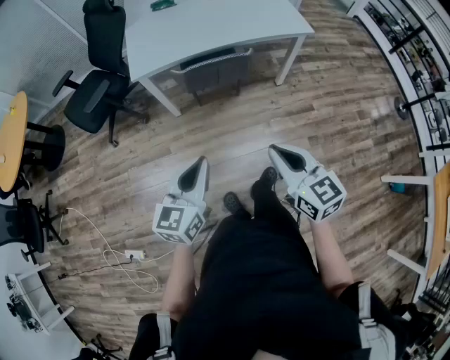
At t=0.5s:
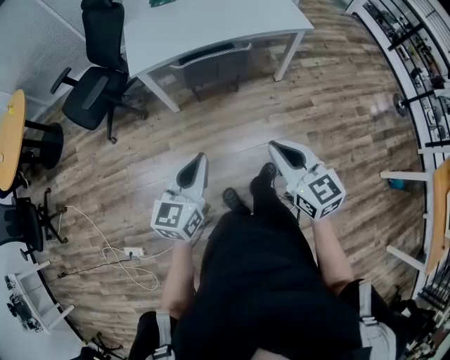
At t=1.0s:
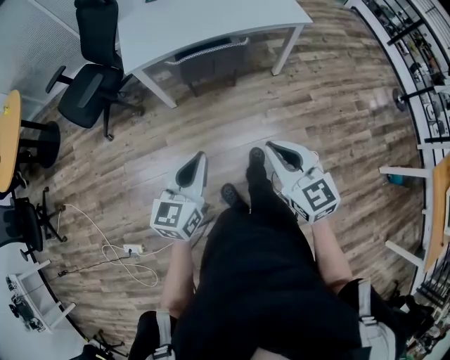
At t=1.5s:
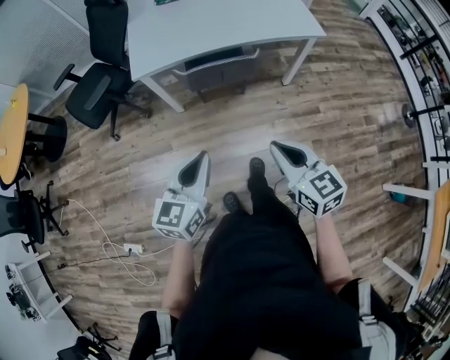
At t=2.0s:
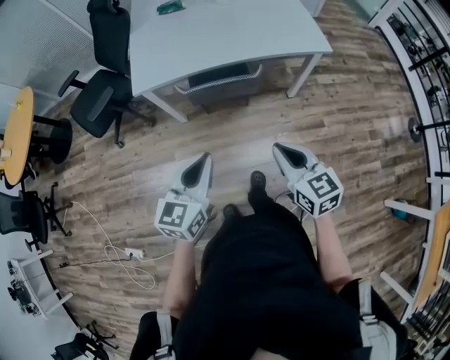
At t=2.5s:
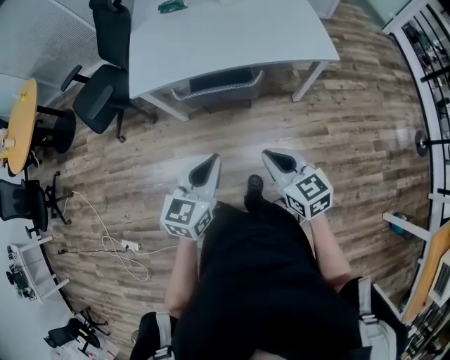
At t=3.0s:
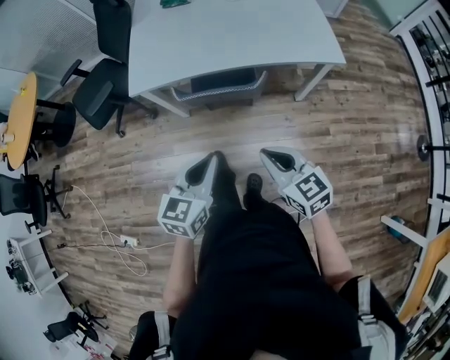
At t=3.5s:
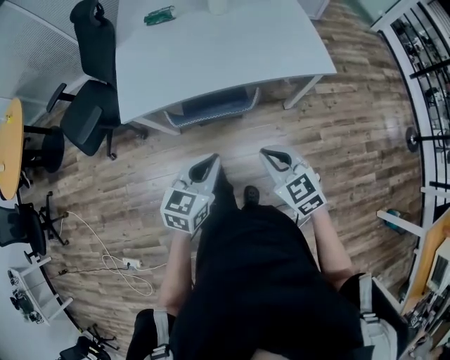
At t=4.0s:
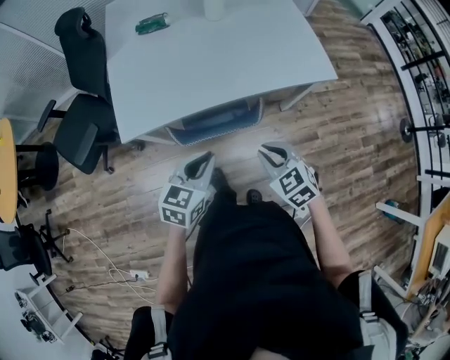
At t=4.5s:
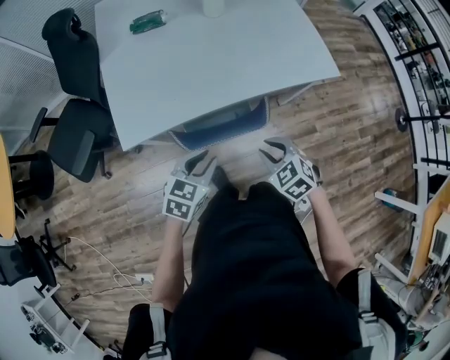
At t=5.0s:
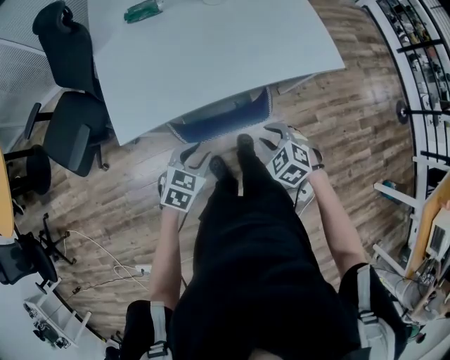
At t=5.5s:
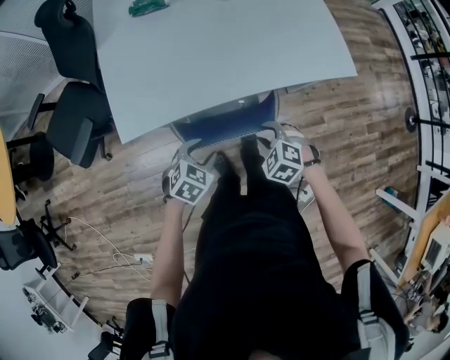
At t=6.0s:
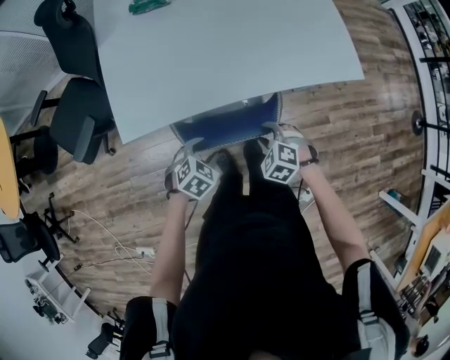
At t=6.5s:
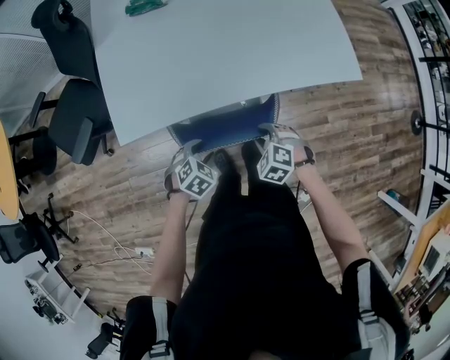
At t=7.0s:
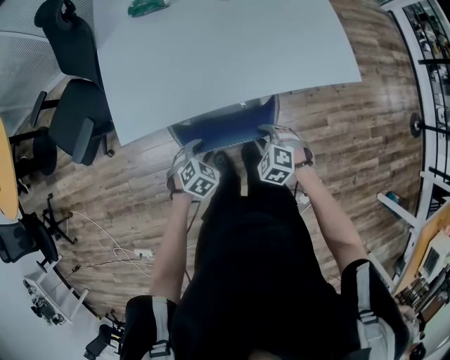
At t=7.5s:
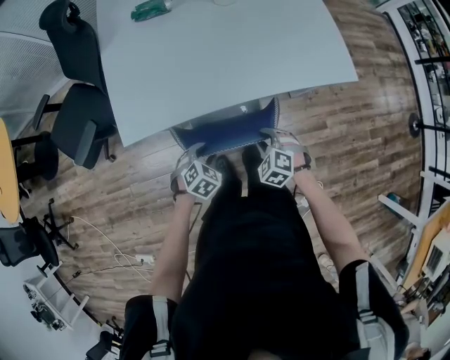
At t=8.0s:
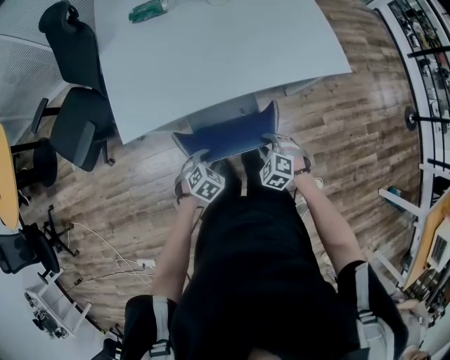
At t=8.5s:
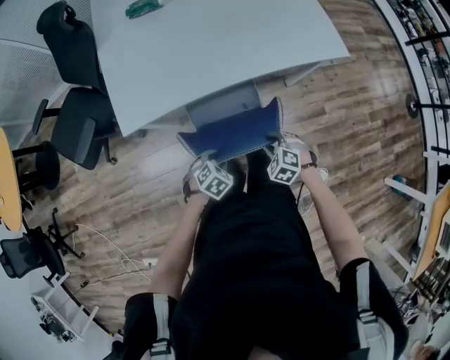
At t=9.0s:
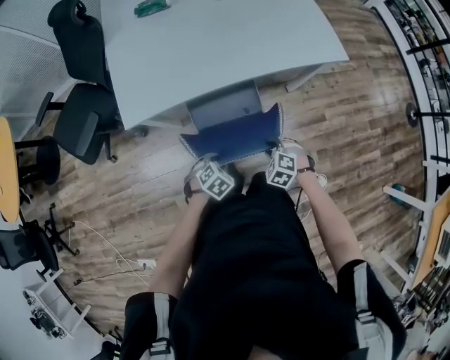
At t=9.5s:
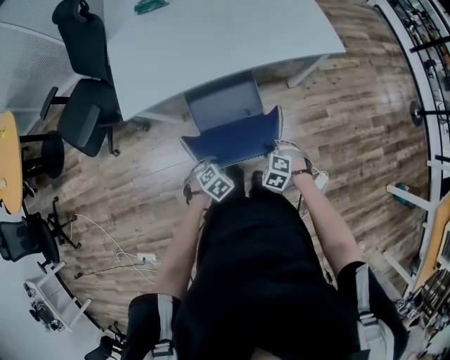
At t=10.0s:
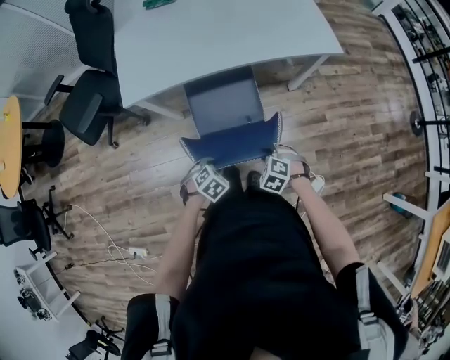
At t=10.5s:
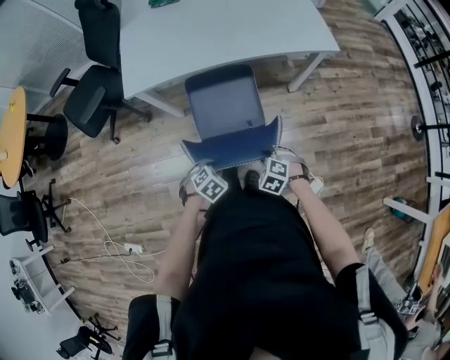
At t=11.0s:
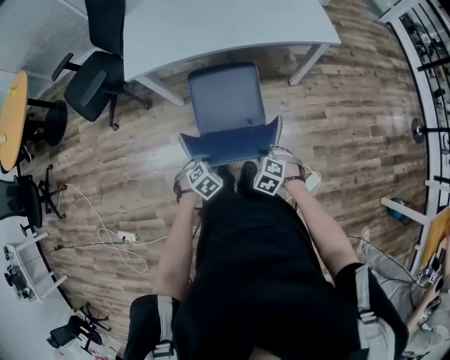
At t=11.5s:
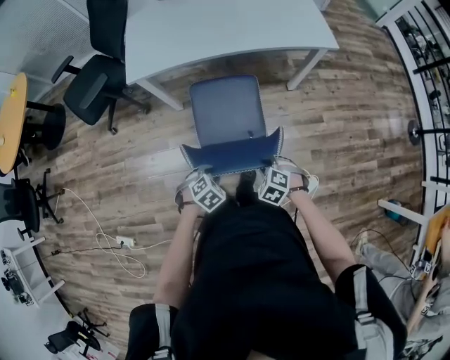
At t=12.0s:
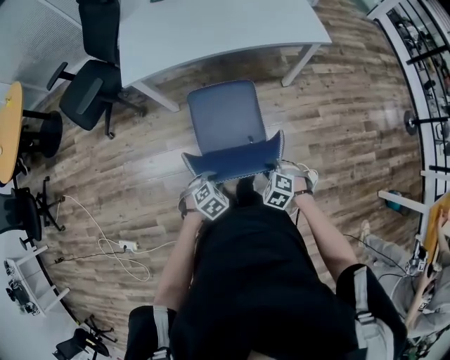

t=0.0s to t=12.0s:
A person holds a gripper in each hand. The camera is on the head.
t=0.0s to t=2.0s: The grippers both shift forward and to the right by approximately 15 cm.
t=2.0s to t=4.0s: The left gripper travels forward by roughly 25 cm, and changes its angle by roughly 20 degrees; the right gripper is displaced forward and downward by some 25 cm, and rotates roughly 30 degrees.
t=4.0s to t=6.0s: The right gripper travels downward and forward by some 15 cm, turns by some 30 degrees, and opens. Meanwhile the left gripper heads downward, covering roughly 15 cm, angles its fingers downward, by about 30 degrees, and opens.
t=6.0s to t=8.0s: Both grippers move backward, some 5 cm.
t=8.0s to t=10.0s: The right gripper ends up about 20 cm from where it was, while the left gripper moves some 20 cm.
t=10.0s to t=12.0s: Both grippers move backward, about 15 cm.

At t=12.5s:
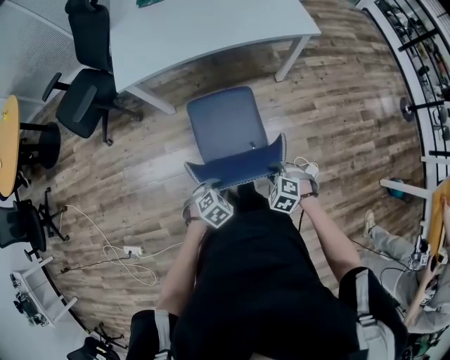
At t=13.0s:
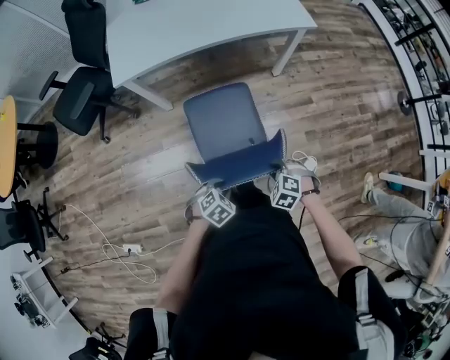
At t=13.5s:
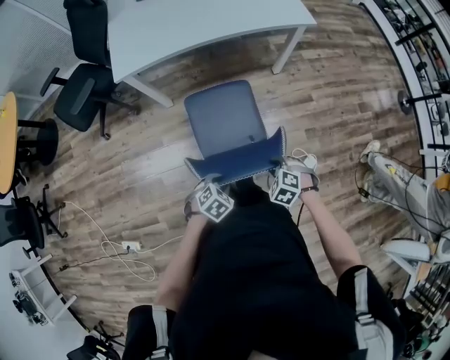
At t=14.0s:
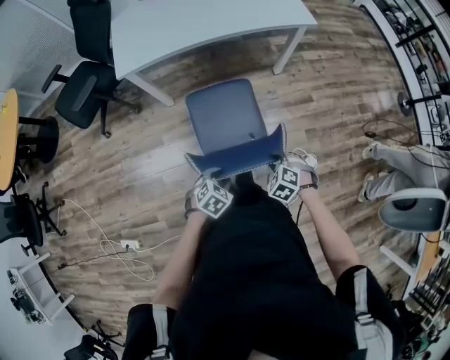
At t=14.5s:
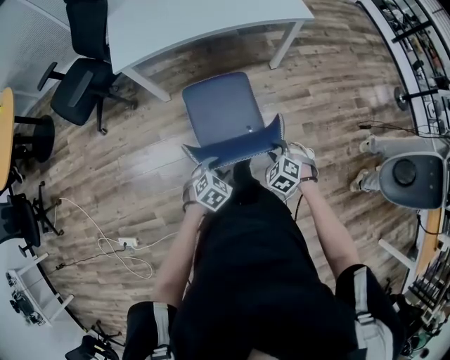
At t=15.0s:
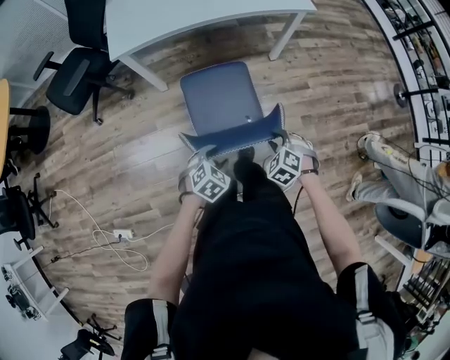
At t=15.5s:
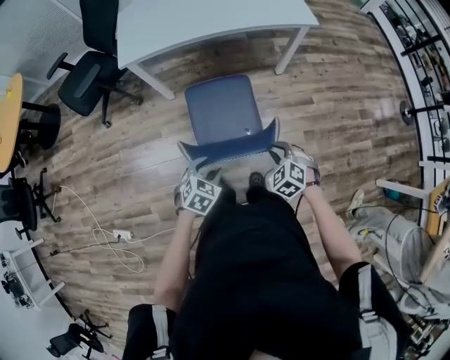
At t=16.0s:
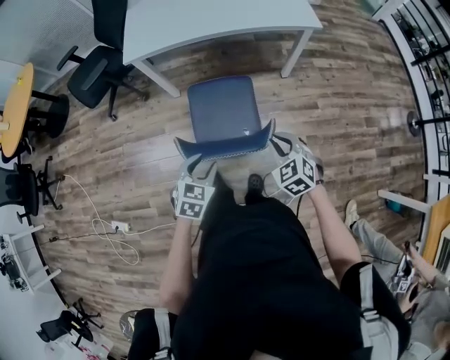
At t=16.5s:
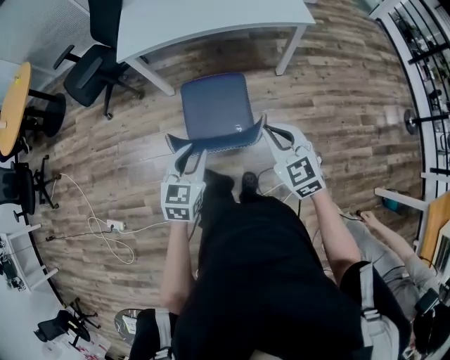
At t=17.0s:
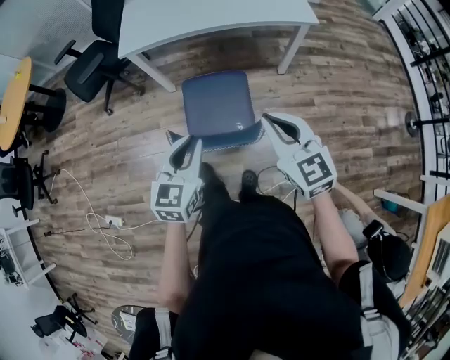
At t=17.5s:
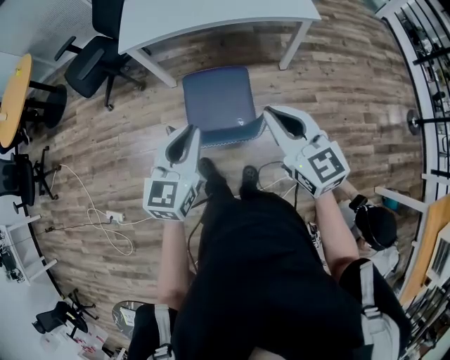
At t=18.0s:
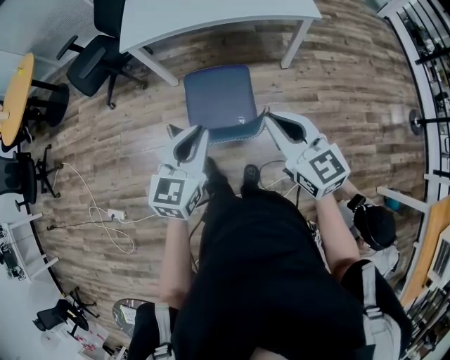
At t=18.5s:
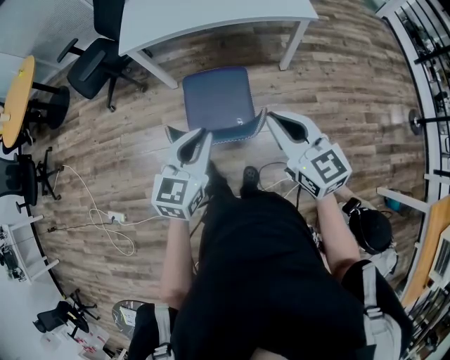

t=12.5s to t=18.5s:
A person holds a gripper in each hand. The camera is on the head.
t=12.5s to t=14.5s: The left gripper opens up.
t=14.5s to t=16.5s: Both grippers travel together upward, some 20 cm. The right gripper tips its fingers upward by approximately 40 degrees, and closes up; the left gripper swivels some 50 degrees.
t=16.5s to t=18.5s: Both grippers move upward, about 10 cm. The right gripper swivels approximately 20 degrees.

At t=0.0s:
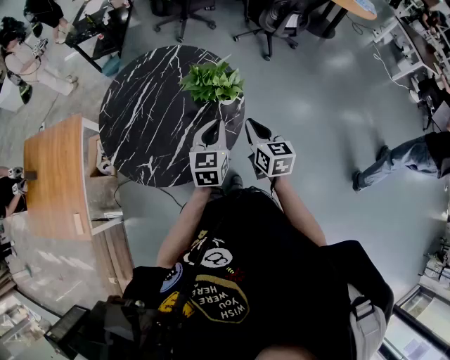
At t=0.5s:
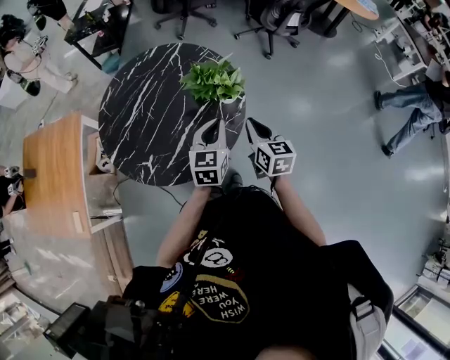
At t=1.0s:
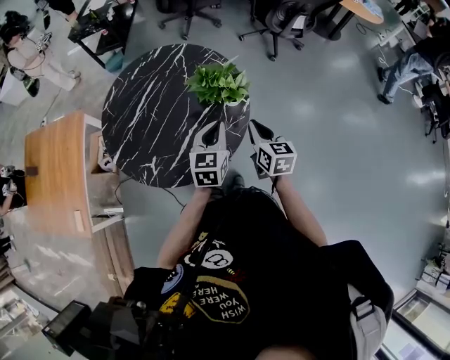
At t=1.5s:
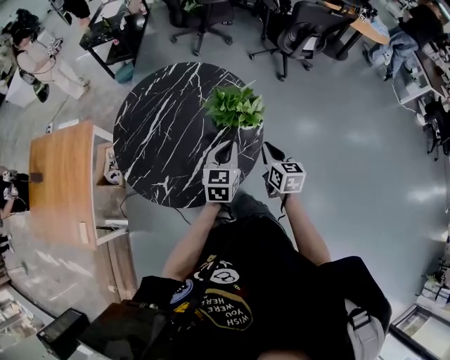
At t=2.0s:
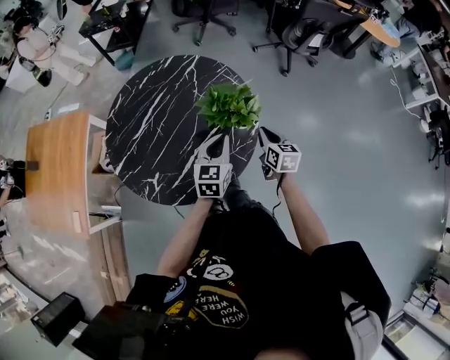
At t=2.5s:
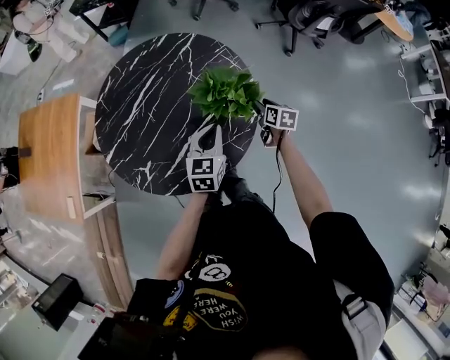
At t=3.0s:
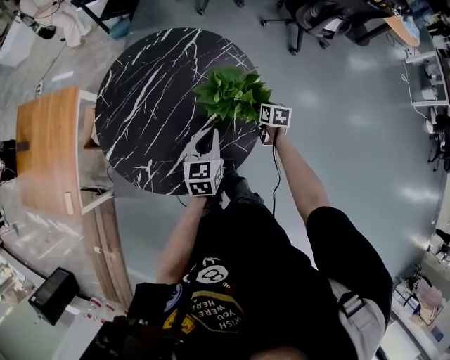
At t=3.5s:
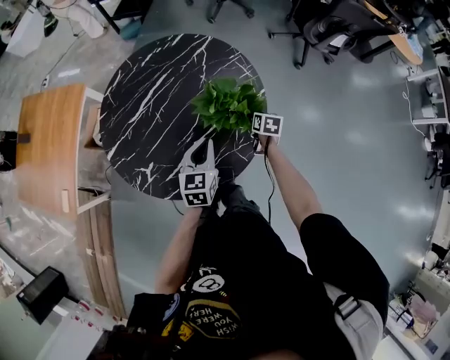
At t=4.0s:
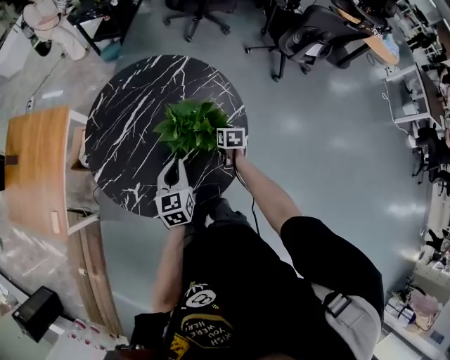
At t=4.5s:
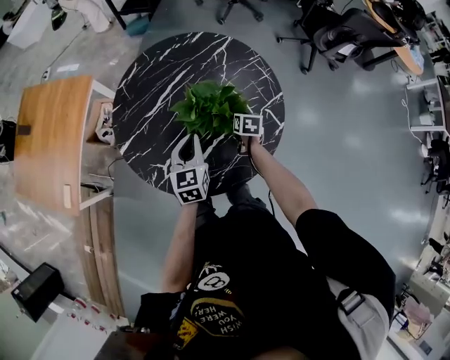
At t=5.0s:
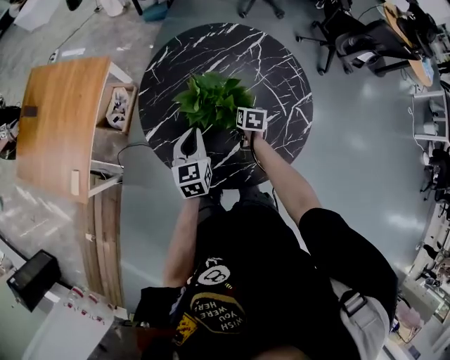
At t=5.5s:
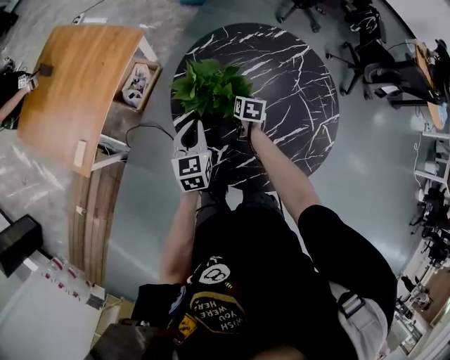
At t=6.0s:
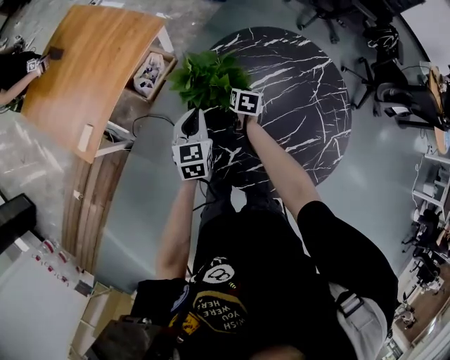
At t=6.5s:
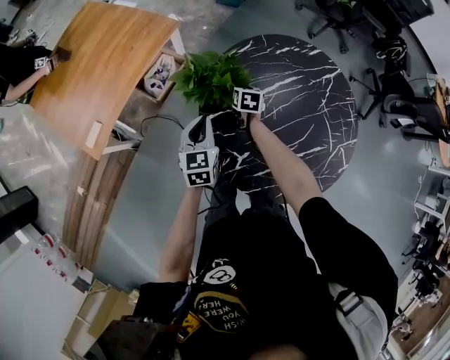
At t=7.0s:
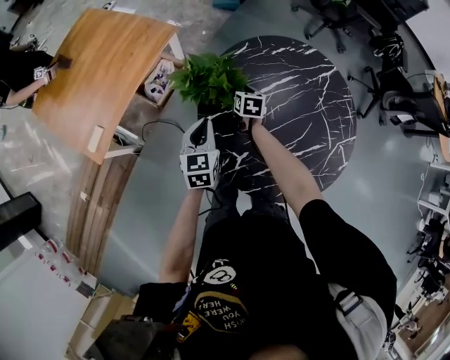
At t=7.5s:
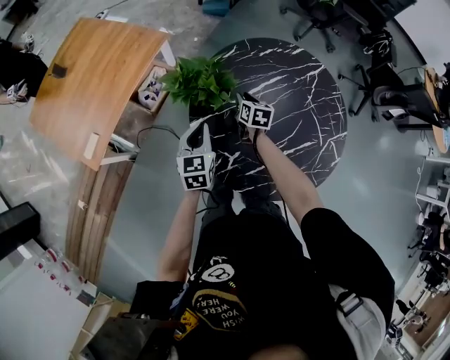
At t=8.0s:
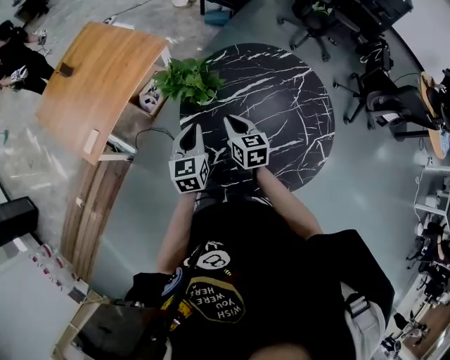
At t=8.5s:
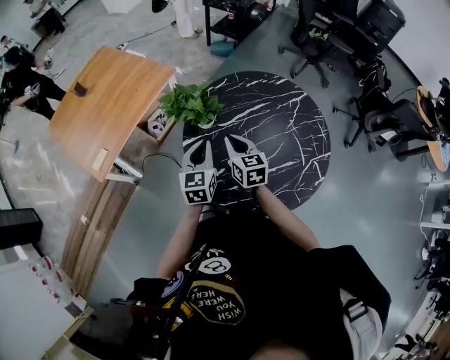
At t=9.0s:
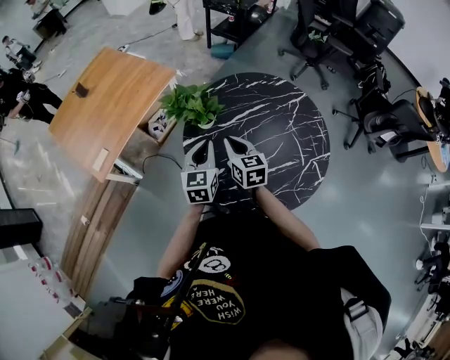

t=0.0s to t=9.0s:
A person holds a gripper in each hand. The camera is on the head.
t=0.0s to t=2.0s: The right gripper goes about 15 cm forward and downward; the left gripper shifts some 10 cm forward.
t=2.0s to t=4.5s: The left gripper is displaced to the left by approximately 20 cm, and changes its angle by approximately 20 degrees, while the right gripper travels to the left, downward and forward by about 25 cm, rotates some 20 degrees, and opens, then closes once more.
t=4.5s to t=7.0s: The grippers both shift to the left by some 35 cm. The right gripper swivels about 20 degrees.
t=7.0s to t=9.0s: The left gripper moves upward, to the right and backward, about 15 cm; the right gripper is displaced upward and backward by approximately 30 cm, changes its angle by approximately 30 degrees, and closes up.
